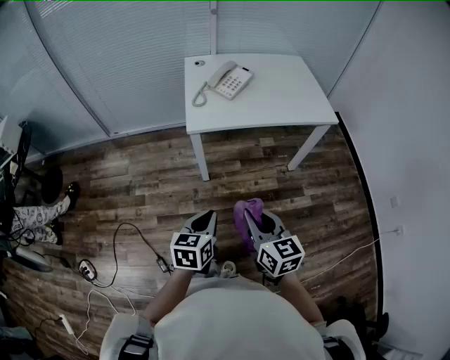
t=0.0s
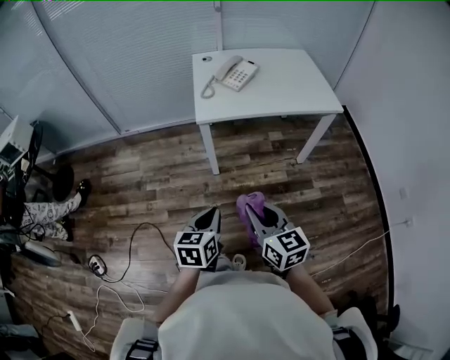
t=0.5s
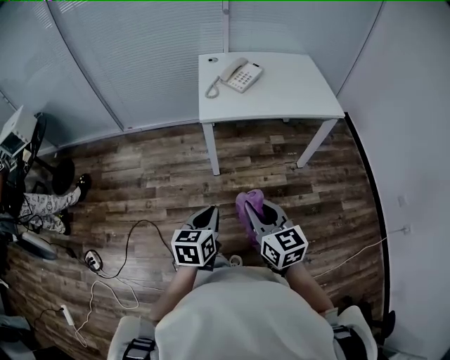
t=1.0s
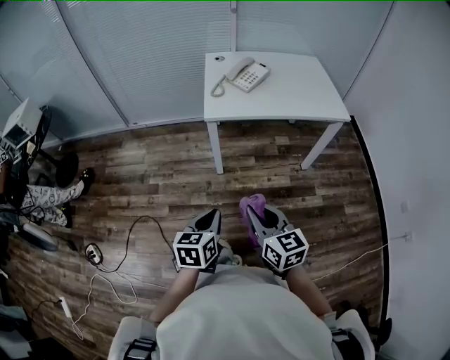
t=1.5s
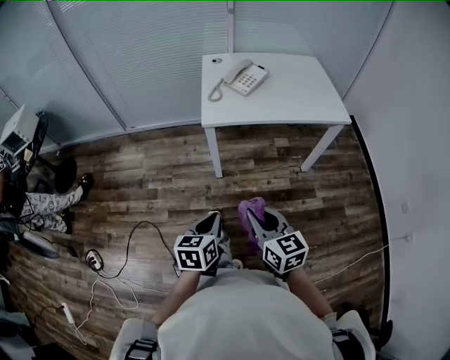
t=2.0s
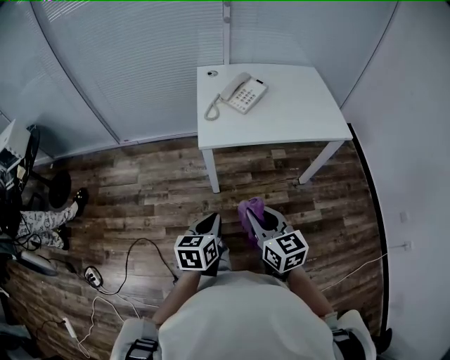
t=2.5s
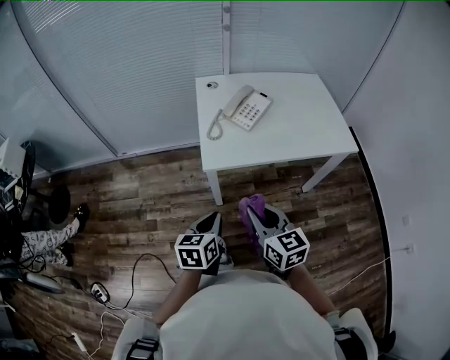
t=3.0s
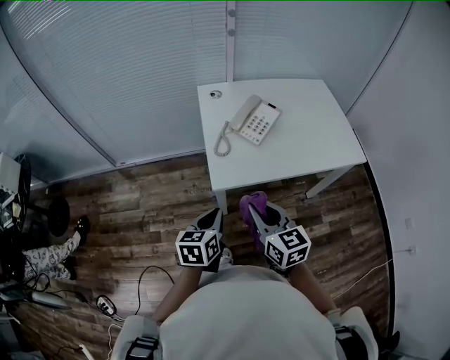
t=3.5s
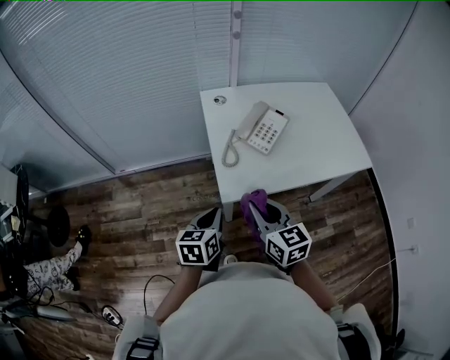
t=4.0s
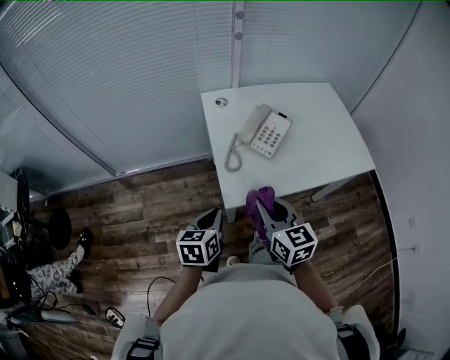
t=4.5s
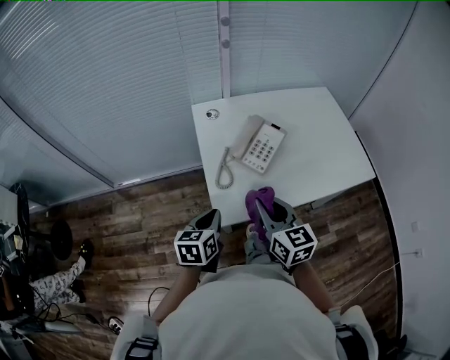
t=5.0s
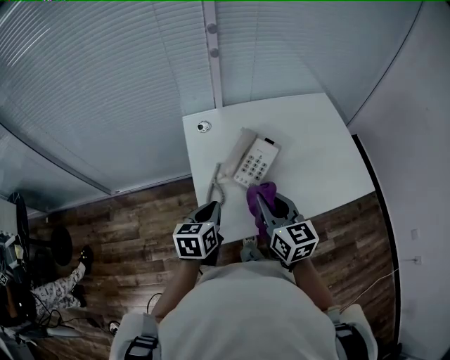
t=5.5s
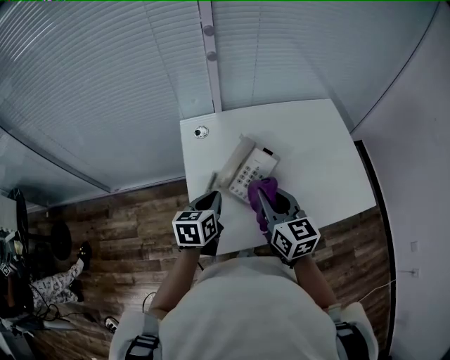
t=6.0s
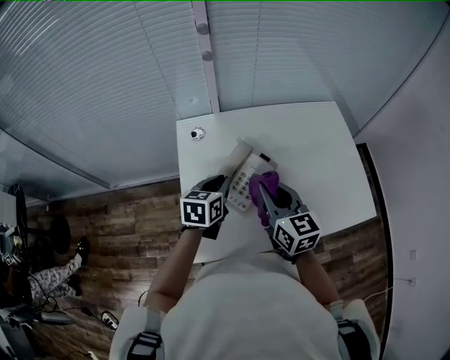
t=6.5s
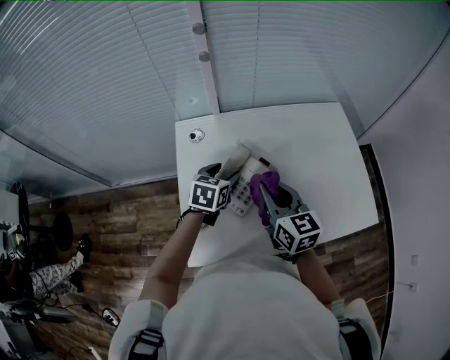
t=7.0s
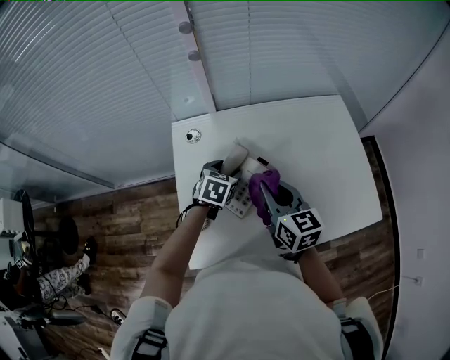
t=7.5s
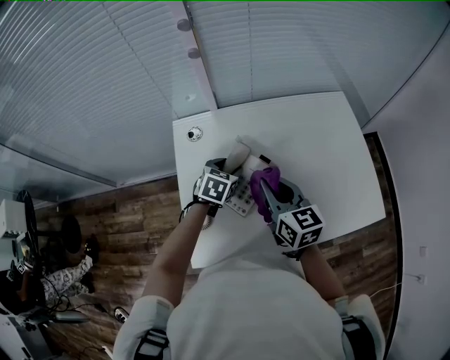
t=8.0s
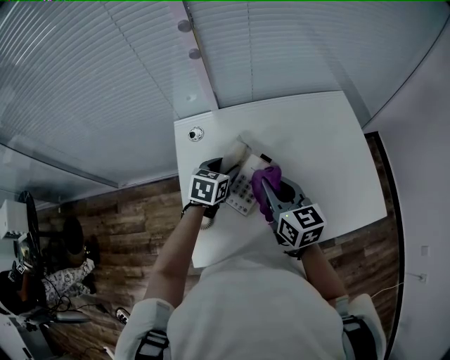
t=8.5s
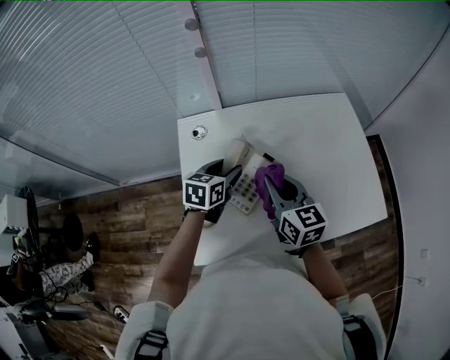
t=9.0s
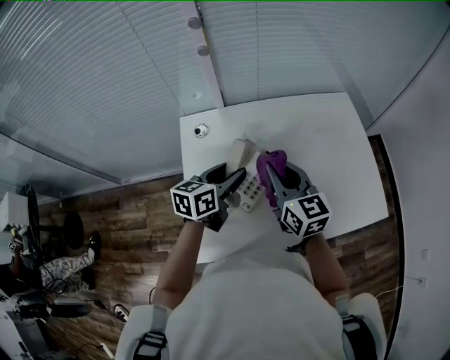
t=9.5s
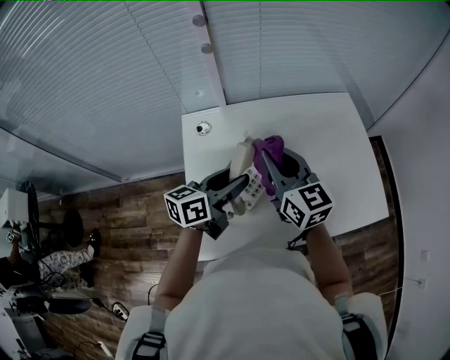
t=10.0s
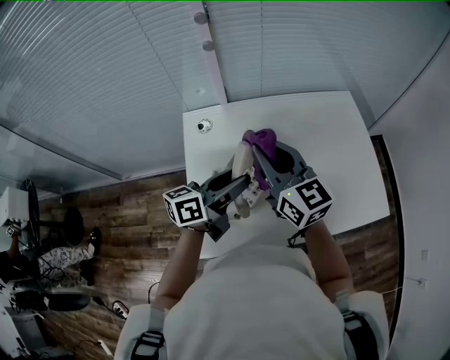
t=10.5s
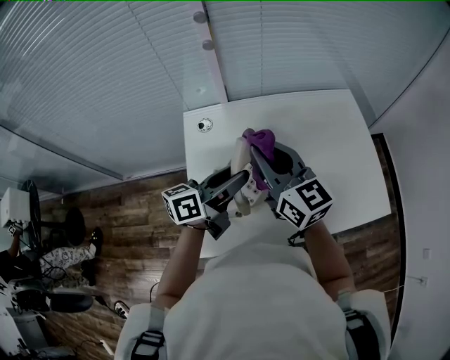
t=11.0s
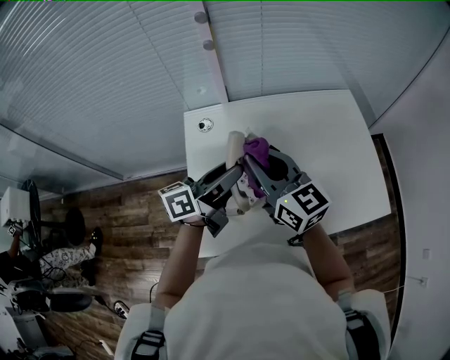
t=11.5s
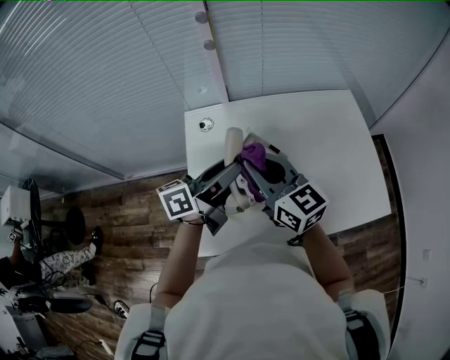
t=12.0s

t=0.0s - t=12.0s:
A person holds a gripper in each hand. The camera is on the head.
t=2.0s - t=4.0s: The two grippers go some 35 cm forward.
t=4.0s - t=6.0s: The right gripper heads forward and to the right, covering about 30 cm; the left gripper shifts roughly 25 cm forward.
t=6.0s - t=8.0s: The left gripper heads forward, downward and to the right, covering some 20 cm, swivels roughly 30 degrees, and opens its fingers. Meanwhile the right gripper goes about 10 cm forward.
t=8.0s - t=10.0s: The left gripper goes some 15 cm upward and backward, and points its fingers roughly 40 degrees further upward; the right gripper shifts some 10 cm upward.
t=10.0s - t=12.0s: The left gripper ends up approximately 5 cm from where it was; the right gripper travels to the left by approximately 5 cm.

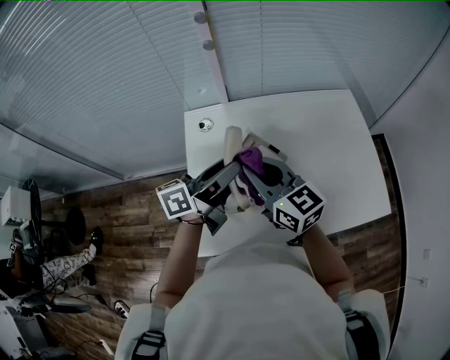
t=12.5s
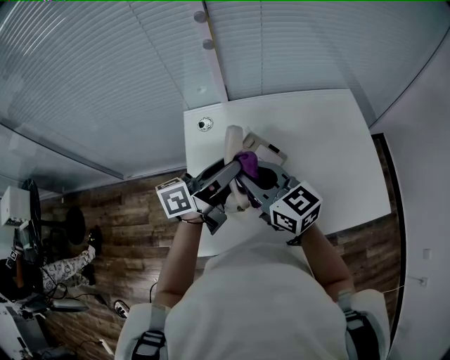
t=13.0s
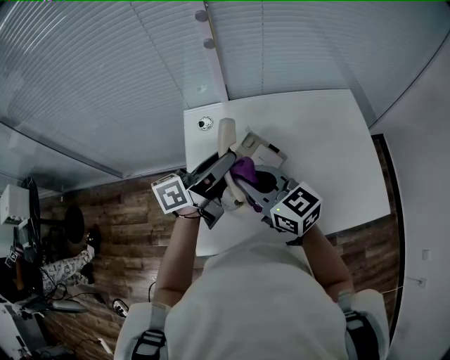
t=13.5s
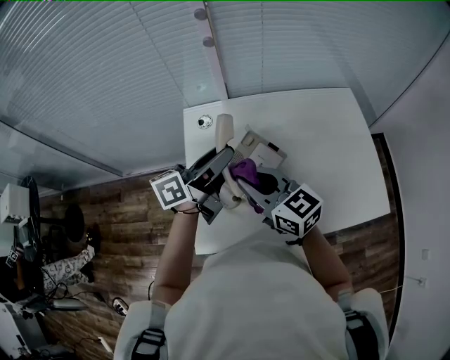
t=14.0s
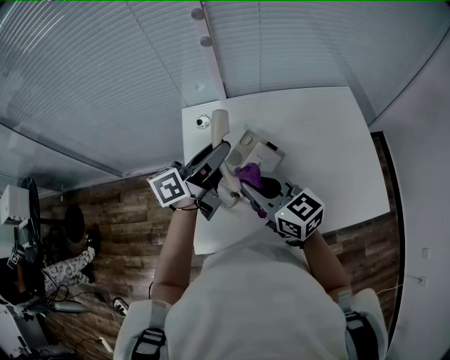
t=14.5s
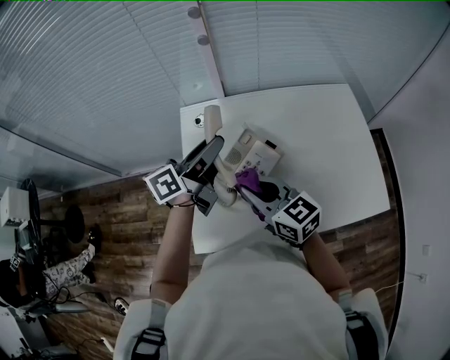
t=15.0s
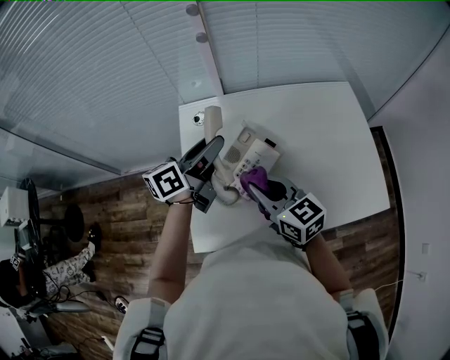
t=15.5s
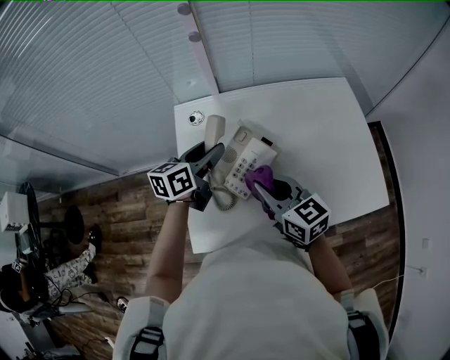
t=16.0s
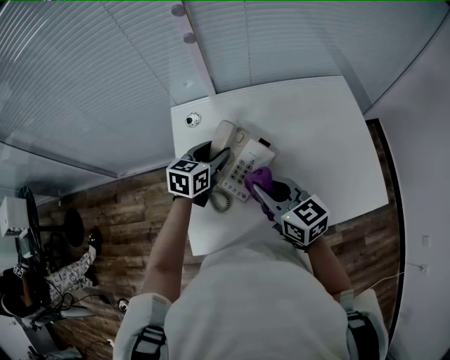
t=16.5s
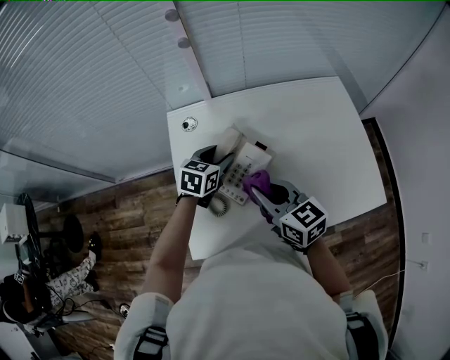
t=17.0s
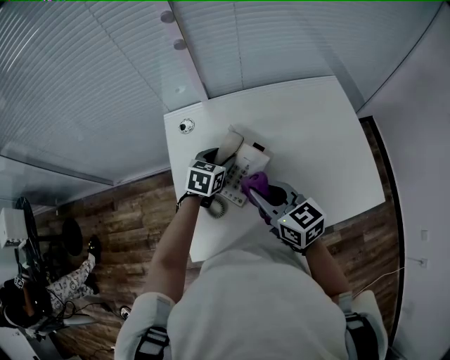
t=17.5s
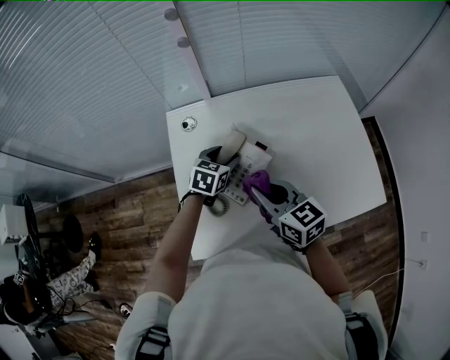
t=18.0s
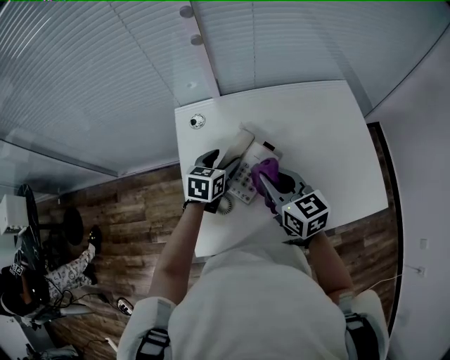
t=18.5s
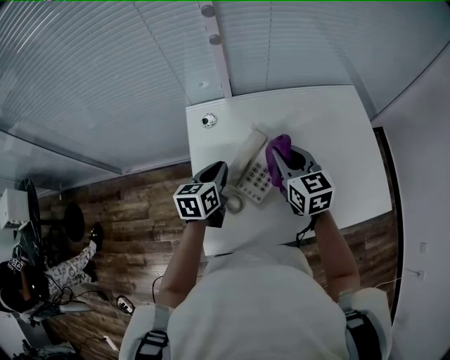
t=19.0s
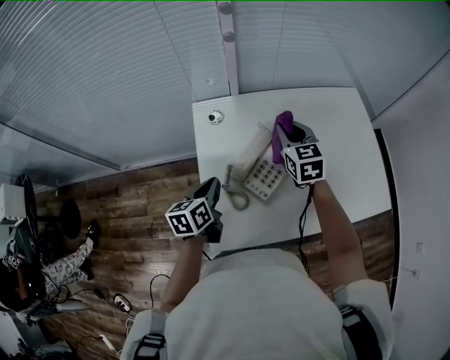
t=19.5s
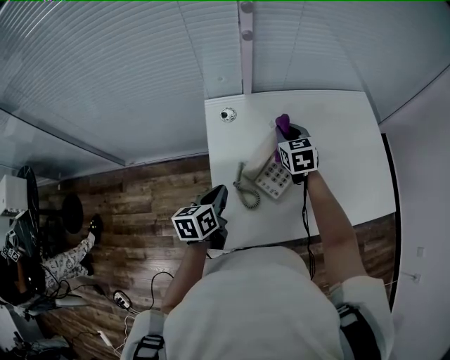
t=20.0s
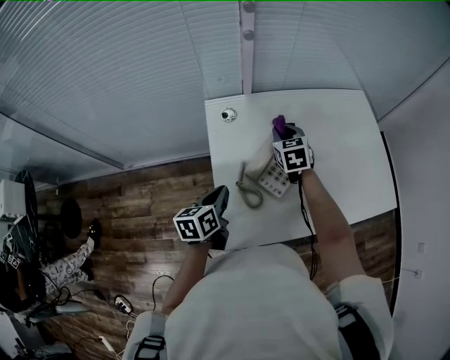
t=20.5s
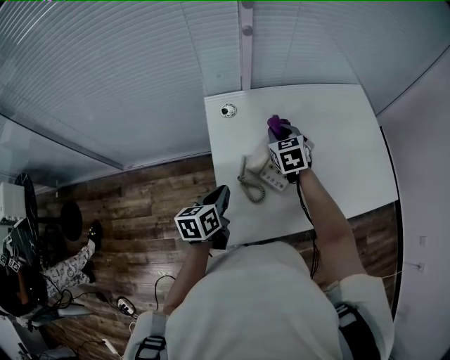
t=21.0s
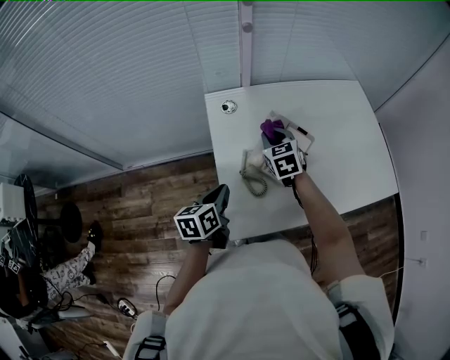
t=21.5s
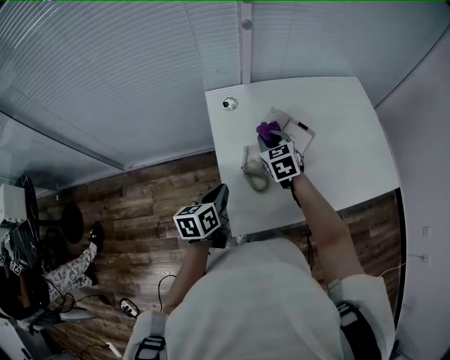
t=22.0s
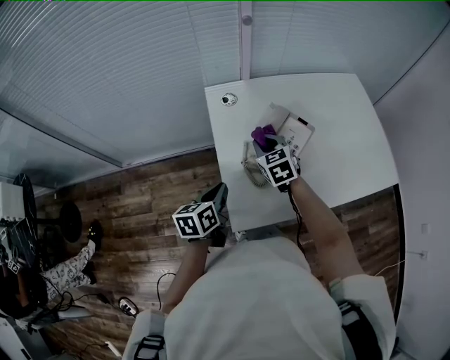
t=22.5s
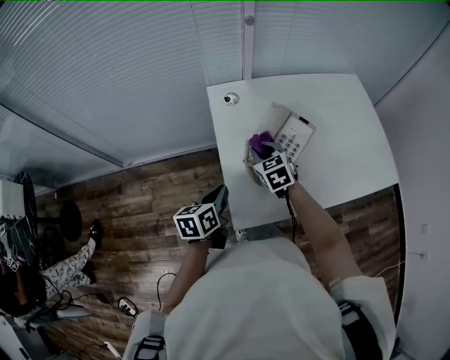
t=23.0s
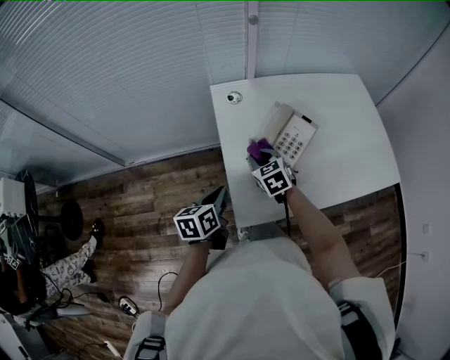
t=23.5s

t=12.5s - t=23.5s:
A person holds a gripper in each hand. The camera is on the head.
t=12.5s - t=14.5s: The right gripper travels backward by about 5 cm.
t=14.5s - t=16.0s: The right gripper changes place by about 5 cm. The left gripper is displaced downward by about 10 cm, and rotates approximately 30 degrees.
t=16.0s - t=18.0s: The left gripper is displaced downward and to the right by approximately 15 cm, and changes its angle by approximately 30 degrees.
t=18.0s - t=20.0s: The left gripper goes about 20 cm to the left and backward, turns by roughly 40 degrees, and closes its fingers; the right gripper travels forward by approximately 20 cm, and turns by approximately 30 degrees.
t=20.0s - t=21.5s: The right gripper goes roughly 10 cm backward and to the left.
t=21.5s - t=23.5s: The left gripper travels backward by roughly 5 cm; the right gripper is displaced backward, to the left and downward by roughly 15 cm.

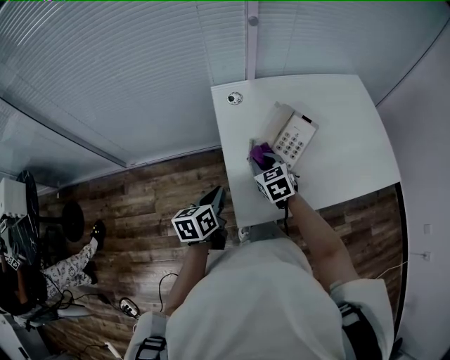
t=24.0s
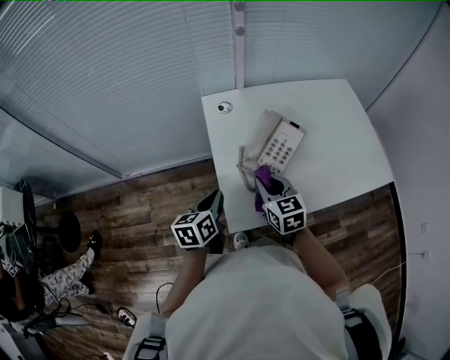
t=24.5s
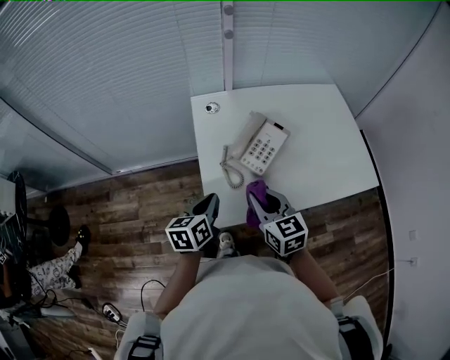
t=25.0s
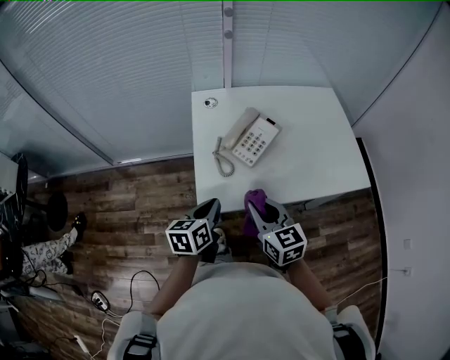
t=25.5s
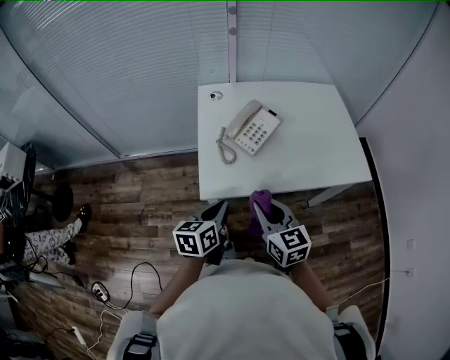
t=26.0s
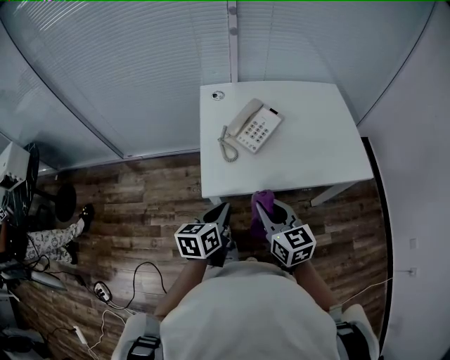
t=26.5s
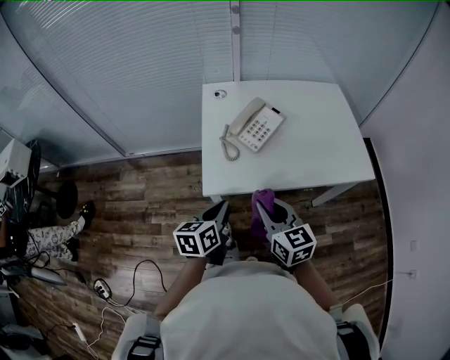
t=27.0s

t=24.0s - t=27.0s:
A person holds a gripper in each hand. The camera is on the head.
t=24.0s - t=25.5s: The right gripper heads backward, upward and to the right, covering roughly 25 cm, and turns by about 20 degrees. The left gripper heads to the right and backward, covering approximately 15 cm.
t=25.5s - t=27.0s: Both grippers travel together backward, about 10 cm.

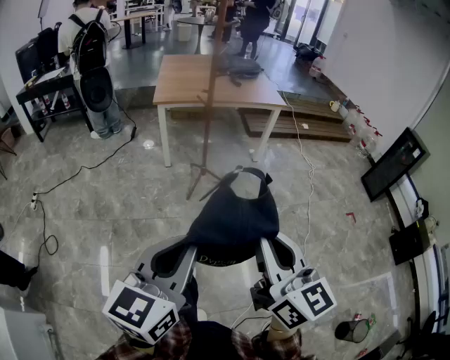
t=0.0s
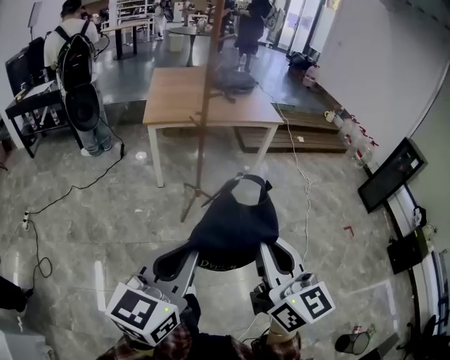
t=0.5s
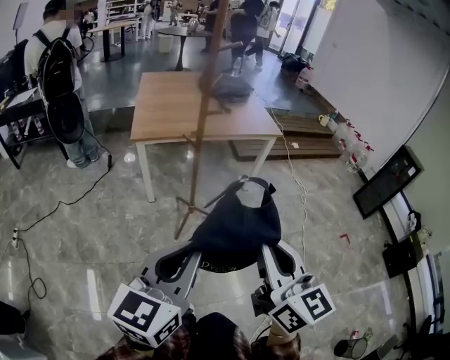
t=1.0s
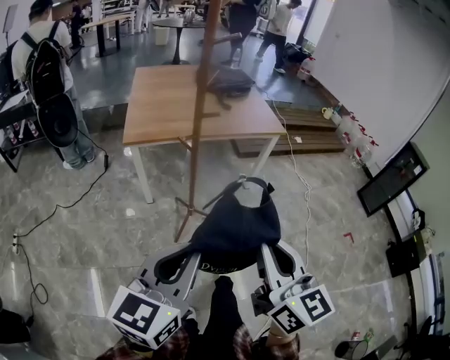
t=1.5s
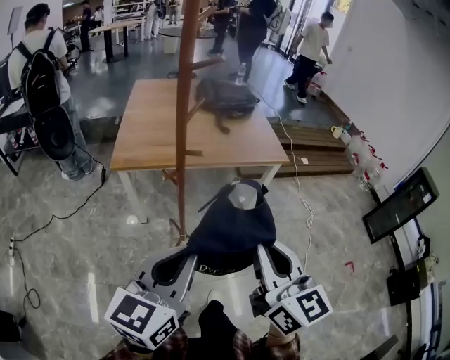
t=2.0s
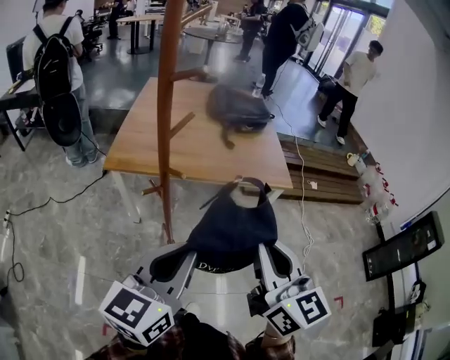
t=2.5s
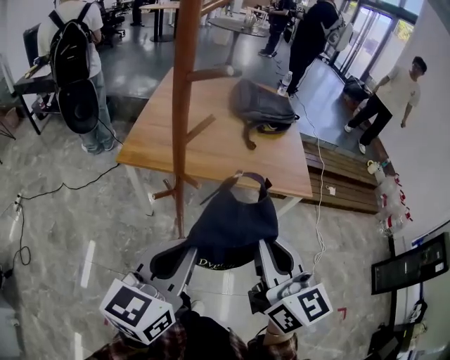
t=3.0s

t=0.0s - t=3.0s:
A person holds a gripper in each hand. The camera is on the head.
t=0.0s - t=1.5s: Both grippers move forward, approximately 35 cm.
t=1.5s - t=3.0s: The left gripper moves forward and to the right, about 30 cm; the right gripper moves forward, roughly 35 cm, and swivels about 20 degrees.
